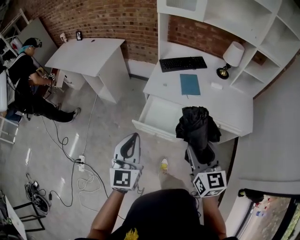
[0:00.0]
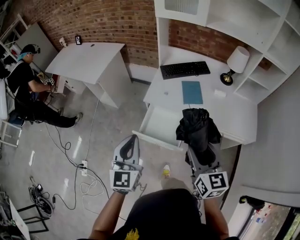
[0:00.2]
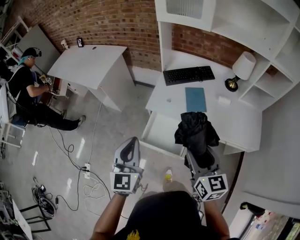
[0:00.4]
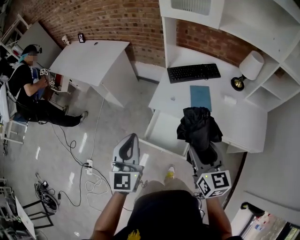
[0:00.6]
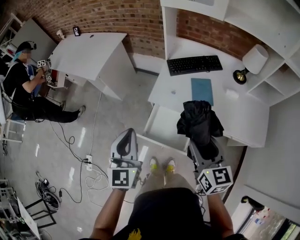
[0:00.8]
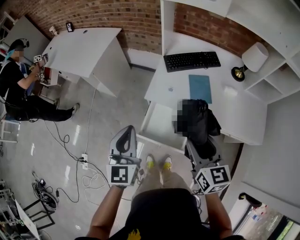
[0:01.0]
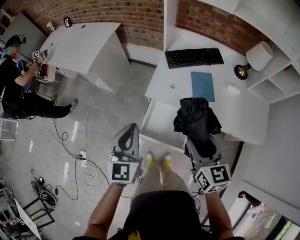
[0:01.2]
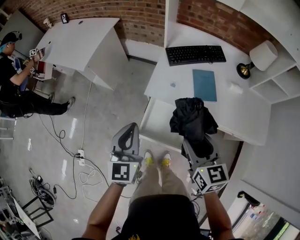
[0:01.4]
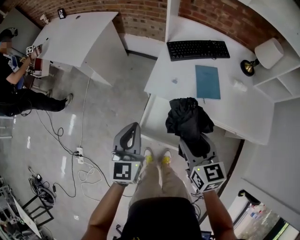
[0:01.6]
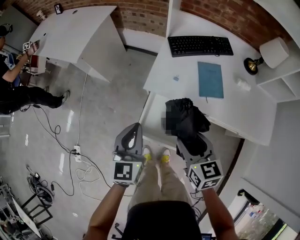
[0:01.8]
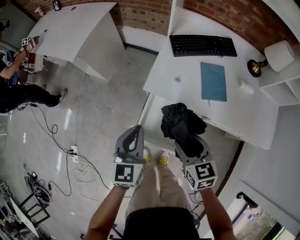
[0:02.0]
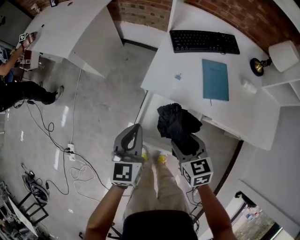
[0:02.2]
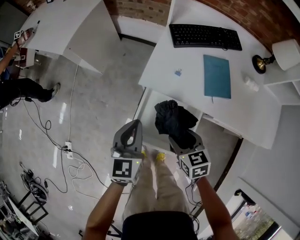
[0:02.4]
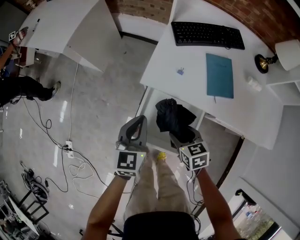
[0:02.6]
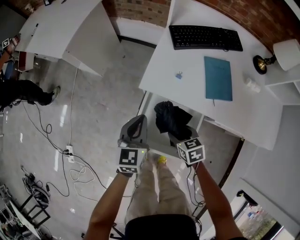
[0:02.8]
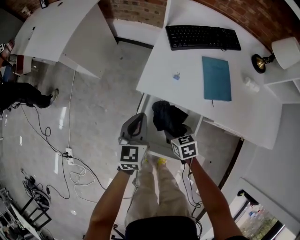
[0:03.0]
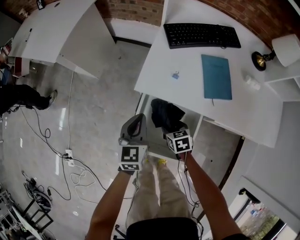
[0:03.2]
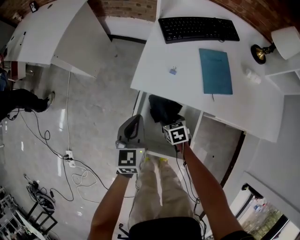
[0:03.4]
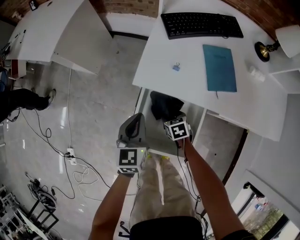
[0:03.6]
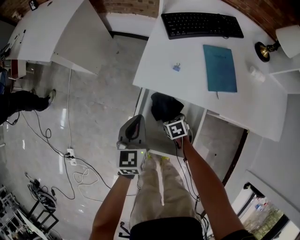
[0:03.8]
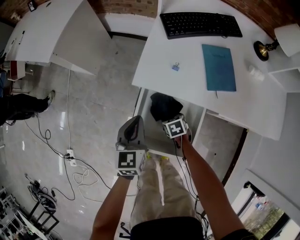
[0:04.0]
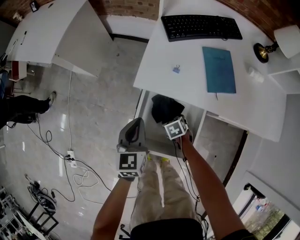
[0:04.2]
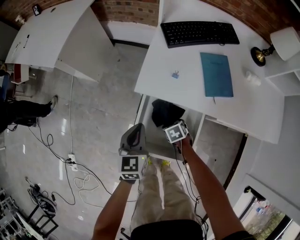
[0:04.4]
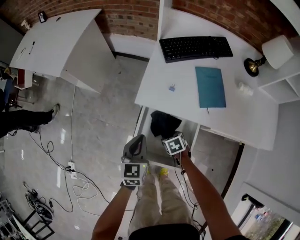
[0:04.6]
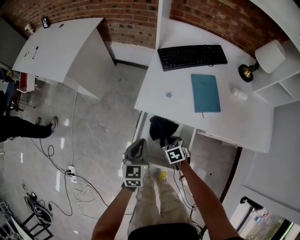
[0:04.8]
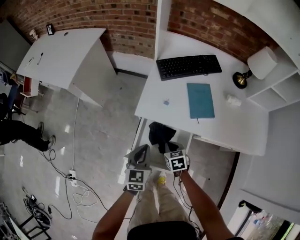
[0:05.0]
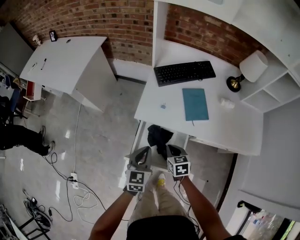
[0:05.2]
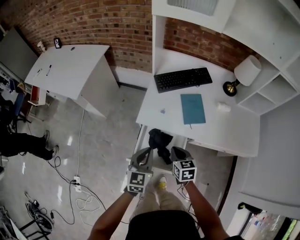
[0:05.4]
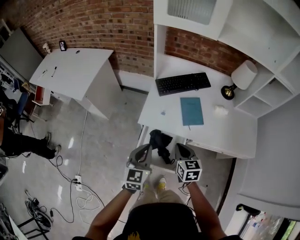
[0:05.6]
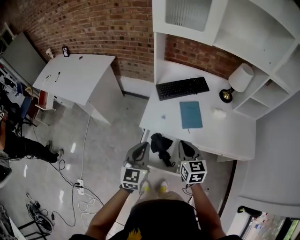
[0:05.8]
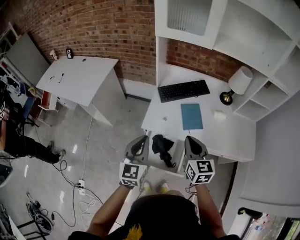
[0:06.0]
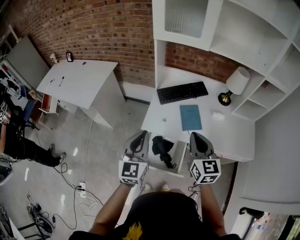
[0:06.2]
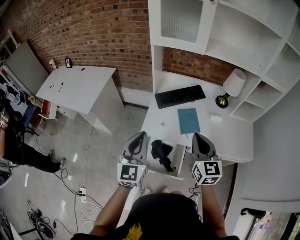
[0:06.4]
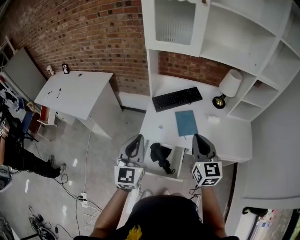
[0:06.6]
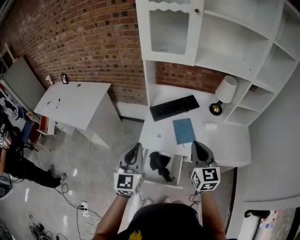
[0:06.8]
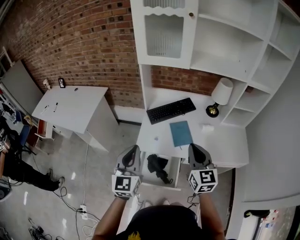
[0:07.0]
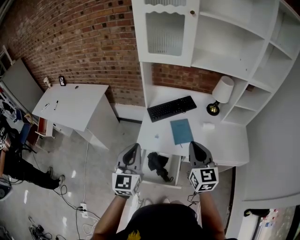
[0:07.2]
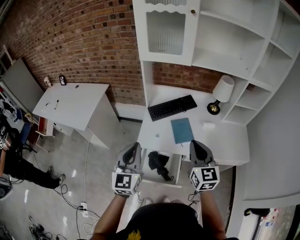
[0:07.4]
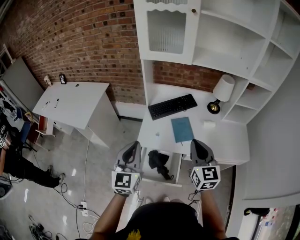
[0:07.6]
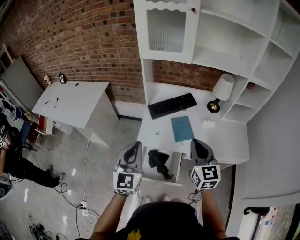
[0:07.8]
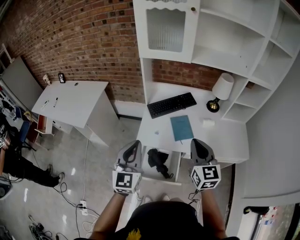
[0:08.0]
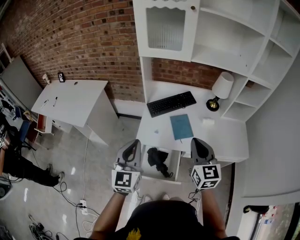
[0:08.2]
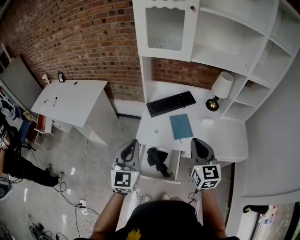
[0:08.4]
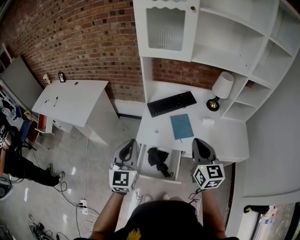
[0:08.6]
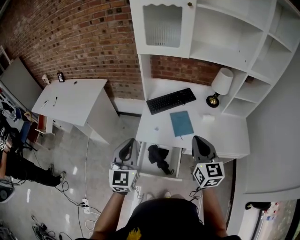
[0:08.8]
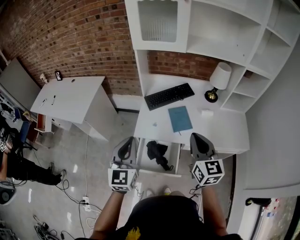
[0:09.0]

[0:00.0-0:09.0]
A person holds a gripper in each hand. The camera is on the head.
0:00.0 to 0:01.6: The two grippers go approximately 30 cm forward and downward.
0:01.6 to 0:03.0: The left gripper goes about 25 cm downward and forward. The right gripper heads downward, covering some 35 cm, and swivels roughly 30 degrees.
0:03.0 to 0:04.4: The right gripper travels downward by roughly 10 cm.
0:04.4 to 0:06.0: The left gripper heads upward, covering roughly 35 cm, and rotates some 20 degrees. The right gripper moves upward, about 50 cm, points its fingers approximately 60 degrees further upward, and closes up.
0:06.0 to 0:07.6: The left gripper is displaced upward by some 10 cm, while the right gripper goes approximately 10 cm upward and to the right.
0:07.6 to 0:09.0: The grippers move only a little.

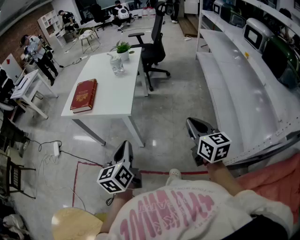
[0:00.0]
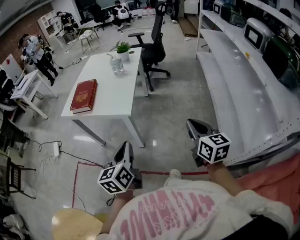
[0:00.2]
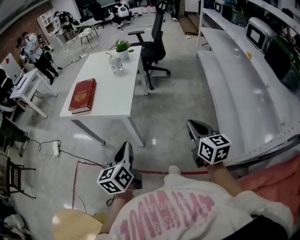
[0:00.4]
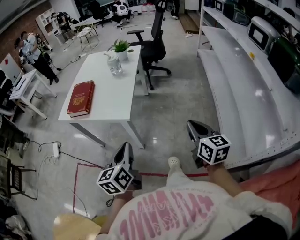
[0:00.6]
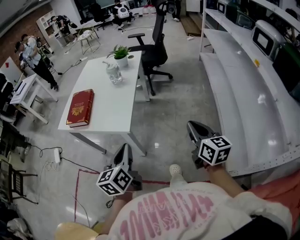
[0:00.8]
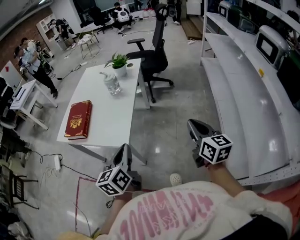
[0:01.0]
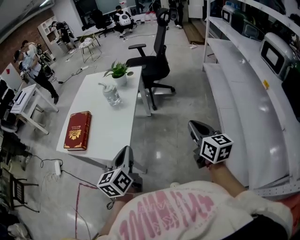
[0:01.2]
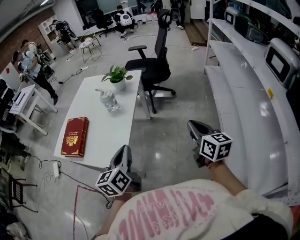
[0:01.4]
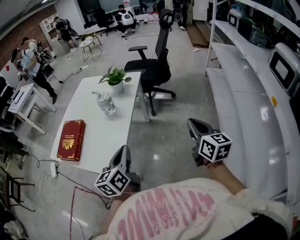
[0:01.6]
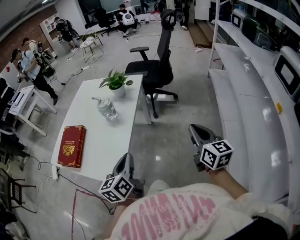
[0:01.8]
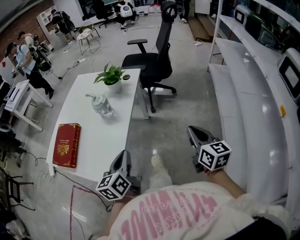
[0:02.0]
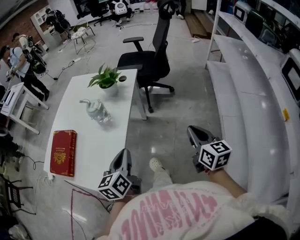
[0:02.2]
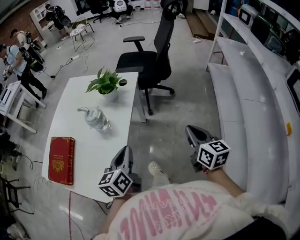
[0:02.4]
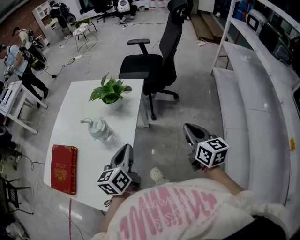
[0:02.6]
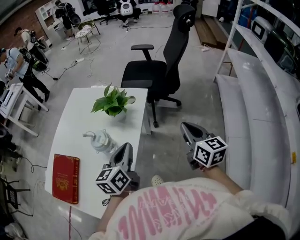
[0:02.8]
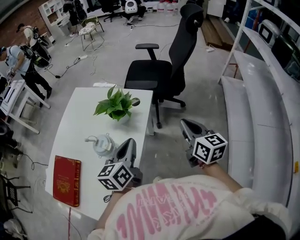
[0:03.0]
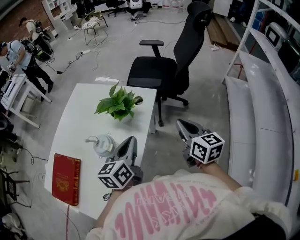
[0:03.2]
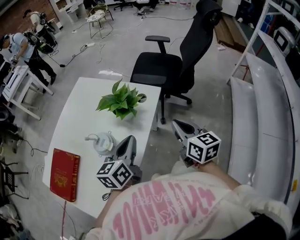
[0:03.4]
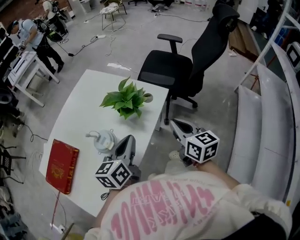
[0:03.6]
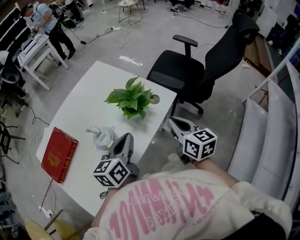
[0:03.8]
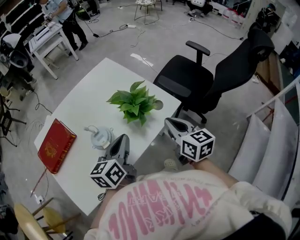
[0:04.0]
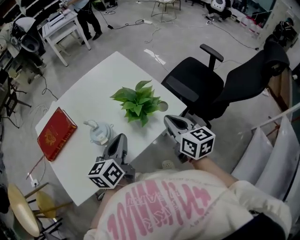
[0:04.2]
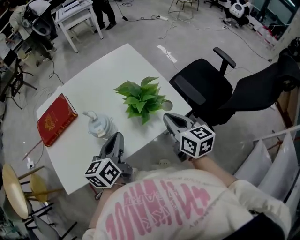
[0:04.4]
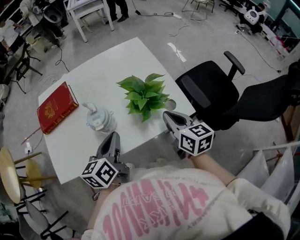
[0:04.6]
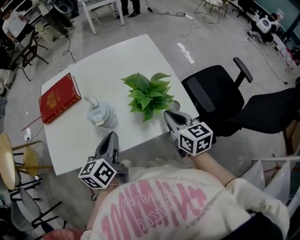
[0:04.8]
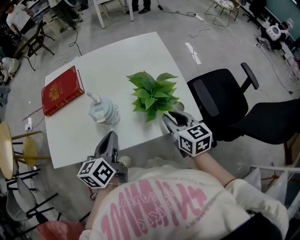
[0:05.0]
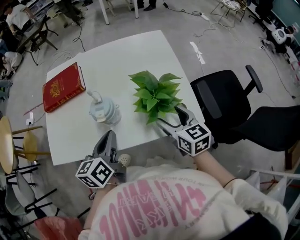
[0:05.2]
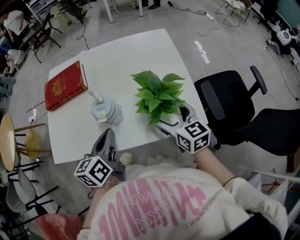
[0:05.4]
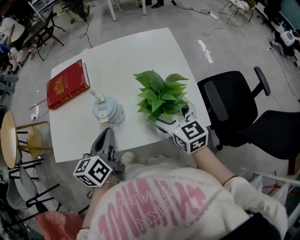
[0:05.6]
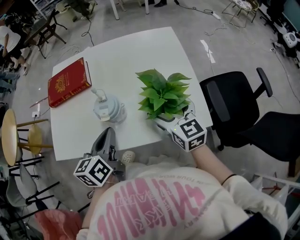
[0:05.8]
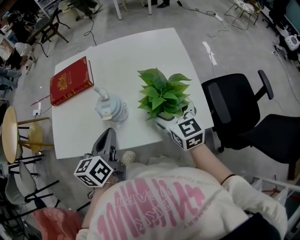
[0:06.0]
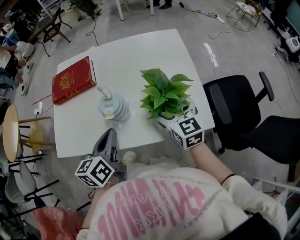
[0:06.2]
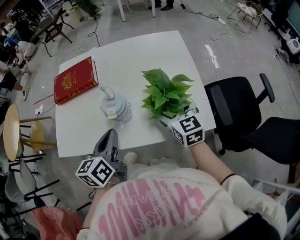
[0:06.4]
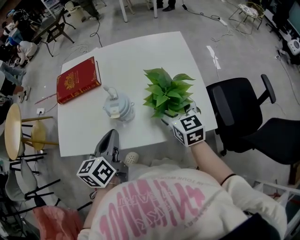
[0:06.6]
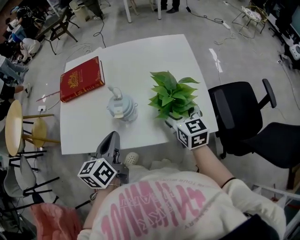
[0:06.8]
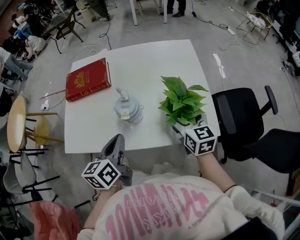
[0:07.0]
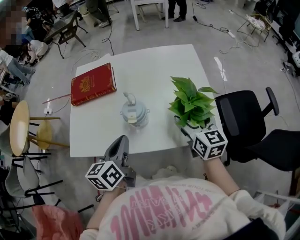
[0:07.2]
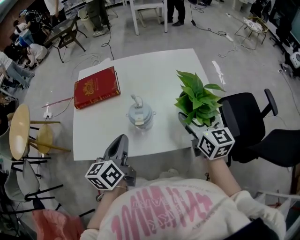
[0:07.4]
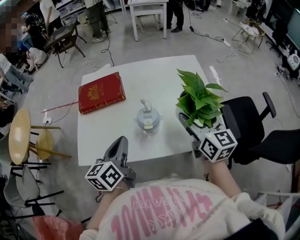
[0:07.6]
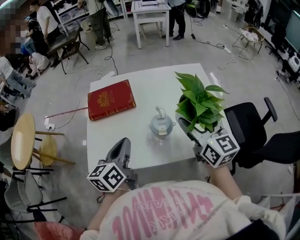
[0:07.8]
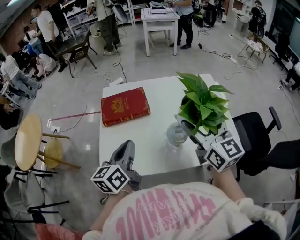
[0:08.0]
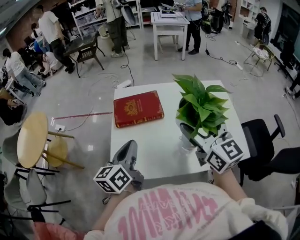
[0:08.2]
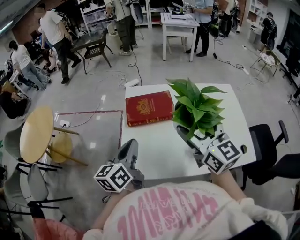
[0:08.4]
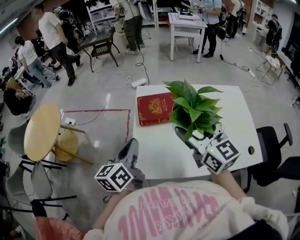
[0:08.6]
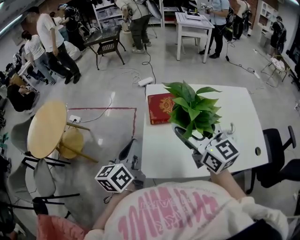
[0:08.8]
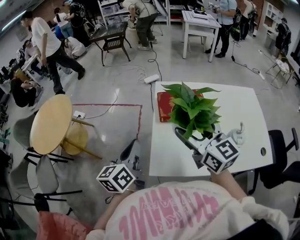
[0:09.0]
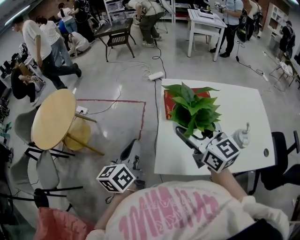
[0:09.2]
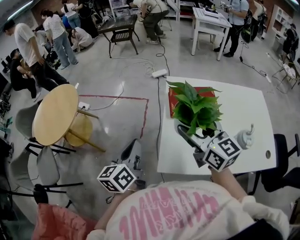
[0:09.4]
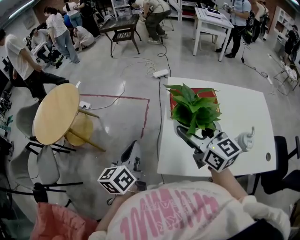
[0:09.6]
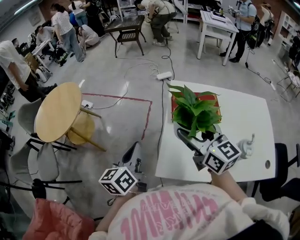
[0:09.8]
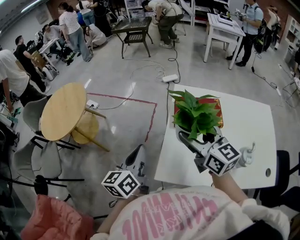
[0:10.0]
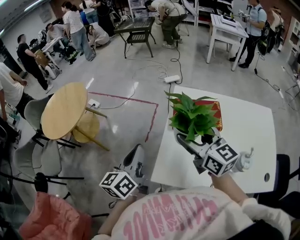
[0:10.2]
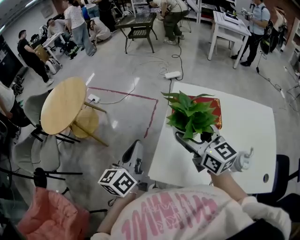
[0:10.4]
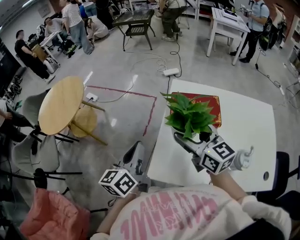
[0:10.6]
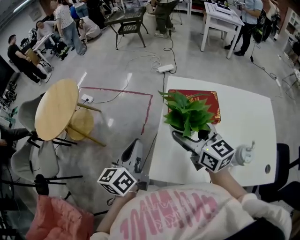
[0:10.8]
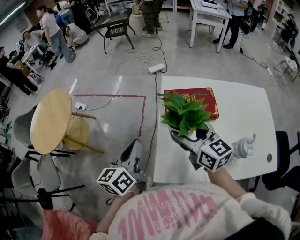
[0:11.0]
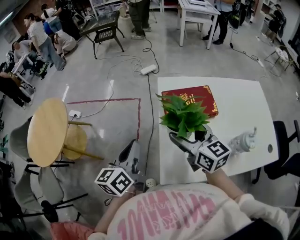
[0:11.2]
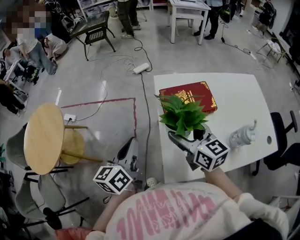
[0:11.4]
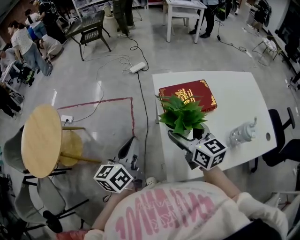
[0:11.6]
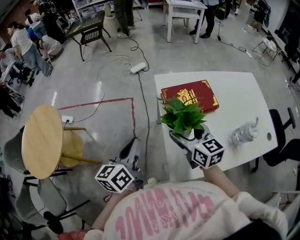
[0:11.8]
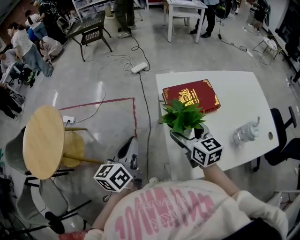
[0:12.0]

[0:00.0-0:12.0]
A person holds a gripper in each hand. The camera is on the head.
0:00.0 to 0:01.6: The two grippers go some 35 cm forward.
0:01.6 to 0:03.0: Both grippers travel together forward, about 35 cm.
0:03.0 to 0:04.4: The left gripper moves about 10 cm, and swivels some 50 degrees, while the right gripper shifts by about 20 cm, and swivels roughly 50 degrees.
0:04.4 to 0:06.0: The right gripper is displaced forward and to the left by about 10 cm, turns by approximately 30 degrees, and opens, while the left gripper is displaced to the left by approximately 5 cm, and swivels about 30 degrees.
0:06.0 to 0:07.6: The left gripper is displaced to the left by approximately 10 cm. Meanwhile the right gripper shifts roughly 10 cm upward.
0:07.6 to 0:09.0: Both grippers move to the left, roughly 40 cm. The right gripper rotates about 20 degrees.
0:09.0 to 0:10.4: The right gripper shifts about 5 cm forward.
0:10.4 to 0:12.0: The right gripper moves downward, approximately 10 cm, and turns by approximately 30 degrees. Meanwhile the left gripper goes approximately 10 cm forward, to the left and downward, and changes its angle by some 20 degrees.

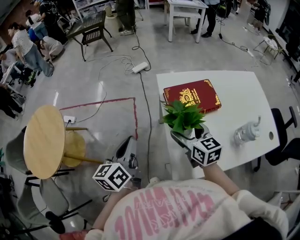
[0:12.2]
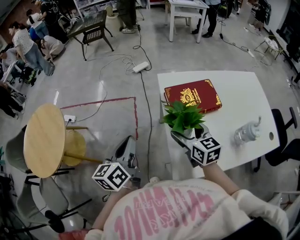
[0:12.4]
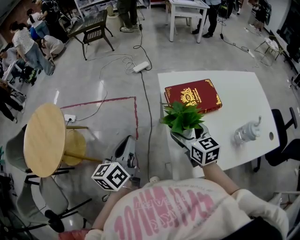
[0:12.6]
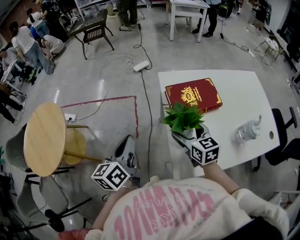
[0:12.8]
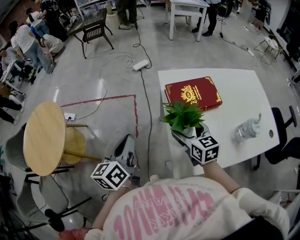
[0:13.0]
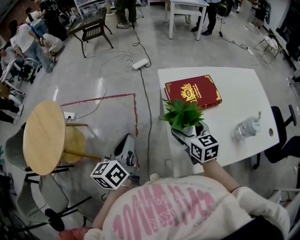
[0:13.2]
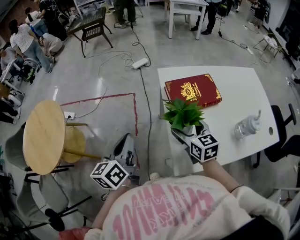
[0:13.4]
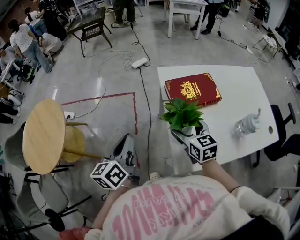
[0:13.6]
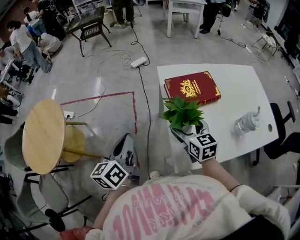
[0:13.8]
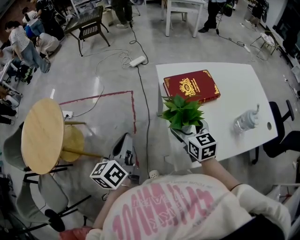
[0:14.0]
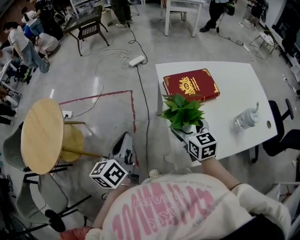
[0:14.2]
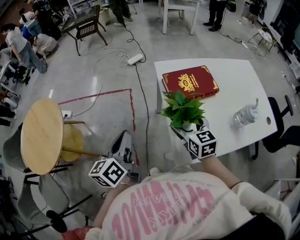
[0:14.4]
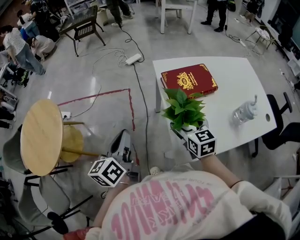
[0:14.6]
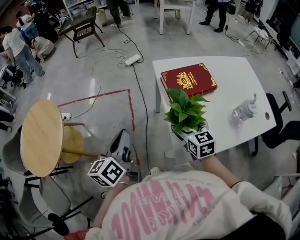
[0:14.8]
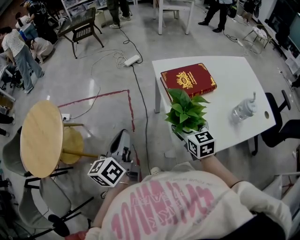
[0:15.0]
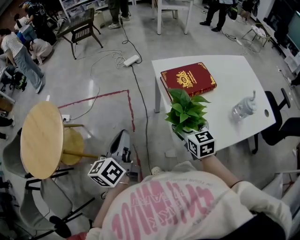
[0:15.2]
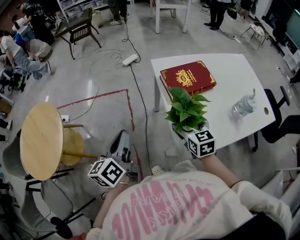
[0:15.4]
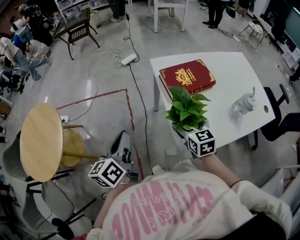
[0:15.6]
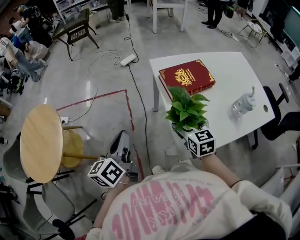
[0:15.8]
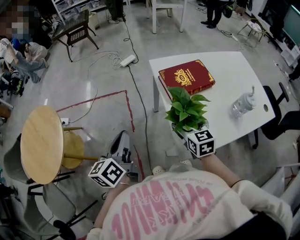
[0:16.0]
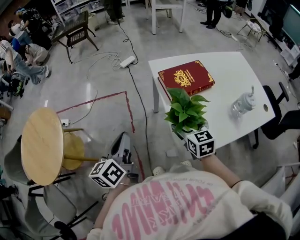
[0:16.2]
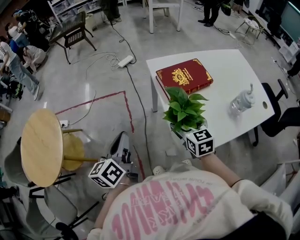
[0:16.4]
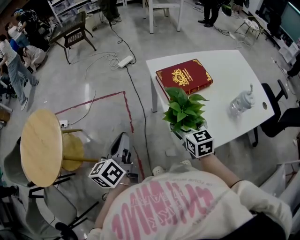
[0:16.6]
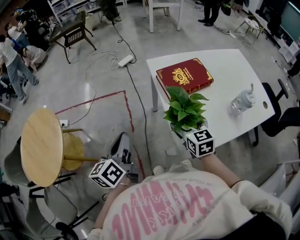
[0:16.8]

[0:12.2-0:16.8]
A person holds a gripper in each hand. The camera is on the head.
0:12.2 to 0:13.8: The grippers make only small movements.
0:13.8 to 0:16.8: There are only small adjustments of the grippers.
